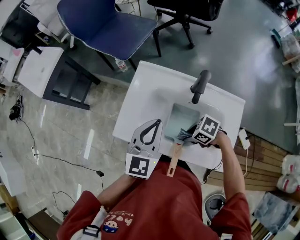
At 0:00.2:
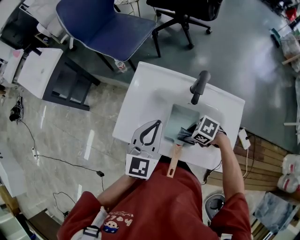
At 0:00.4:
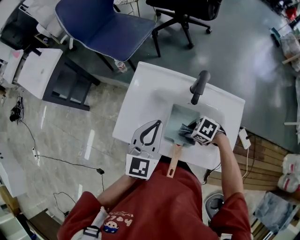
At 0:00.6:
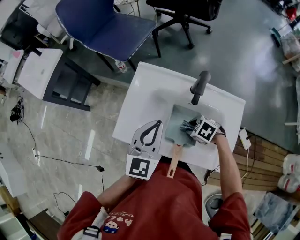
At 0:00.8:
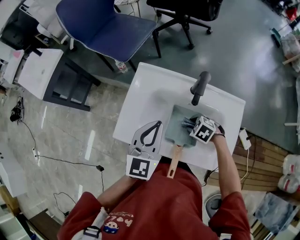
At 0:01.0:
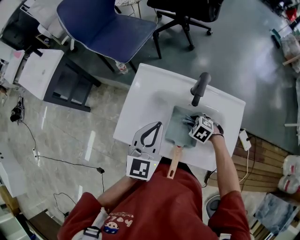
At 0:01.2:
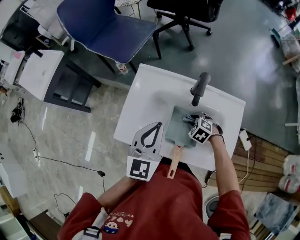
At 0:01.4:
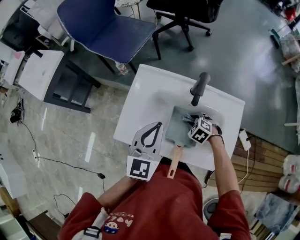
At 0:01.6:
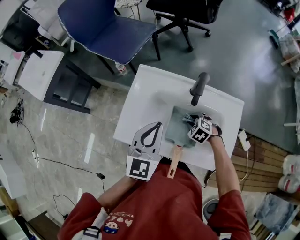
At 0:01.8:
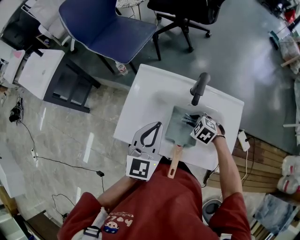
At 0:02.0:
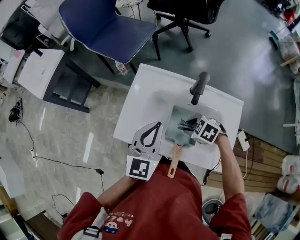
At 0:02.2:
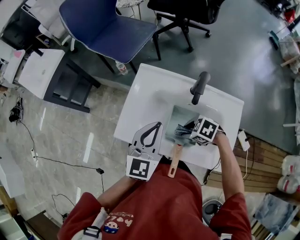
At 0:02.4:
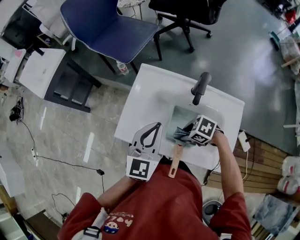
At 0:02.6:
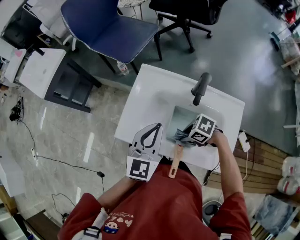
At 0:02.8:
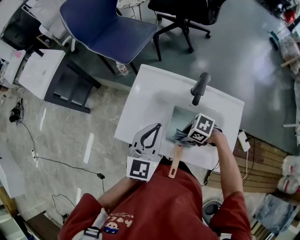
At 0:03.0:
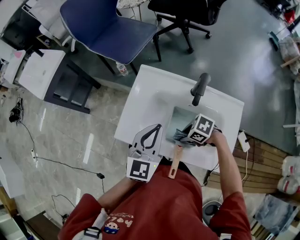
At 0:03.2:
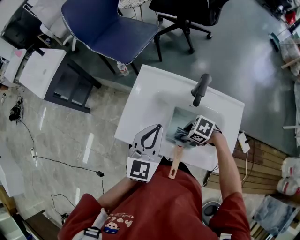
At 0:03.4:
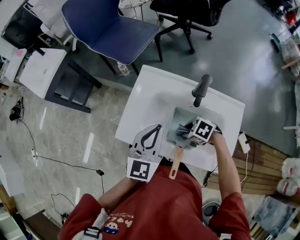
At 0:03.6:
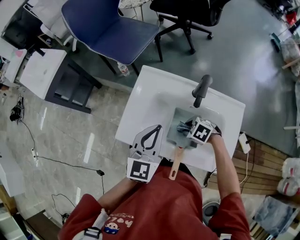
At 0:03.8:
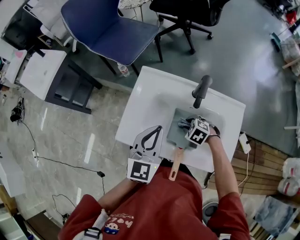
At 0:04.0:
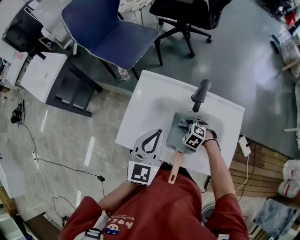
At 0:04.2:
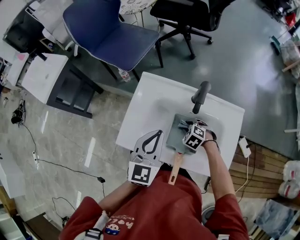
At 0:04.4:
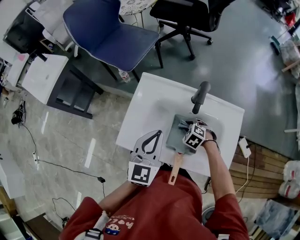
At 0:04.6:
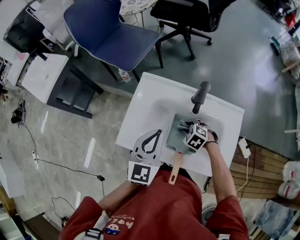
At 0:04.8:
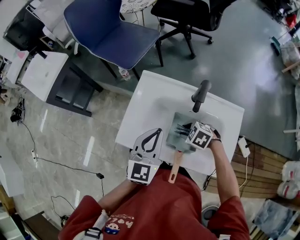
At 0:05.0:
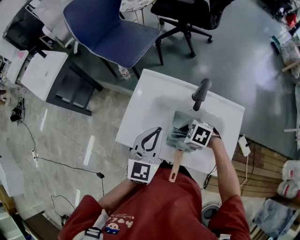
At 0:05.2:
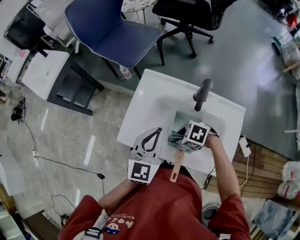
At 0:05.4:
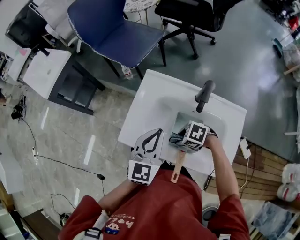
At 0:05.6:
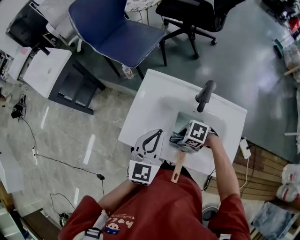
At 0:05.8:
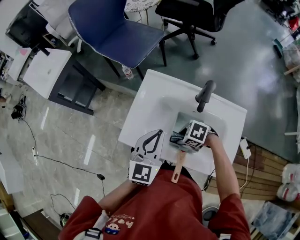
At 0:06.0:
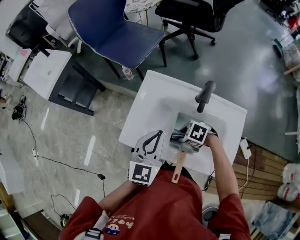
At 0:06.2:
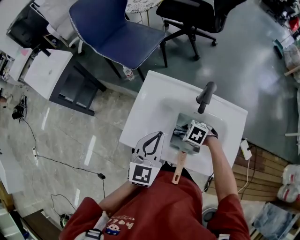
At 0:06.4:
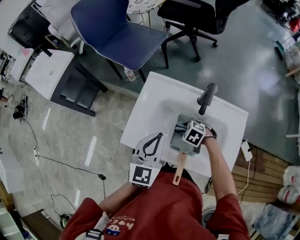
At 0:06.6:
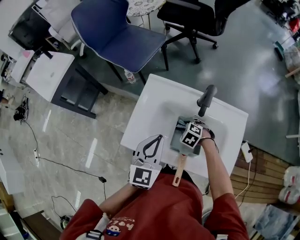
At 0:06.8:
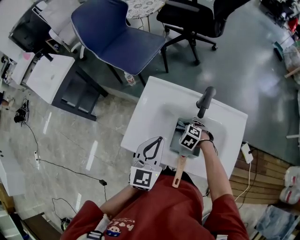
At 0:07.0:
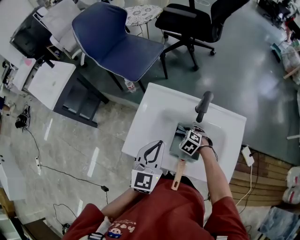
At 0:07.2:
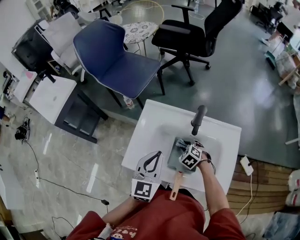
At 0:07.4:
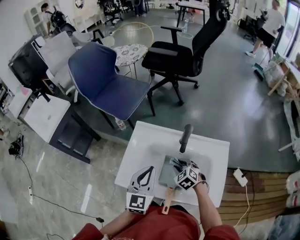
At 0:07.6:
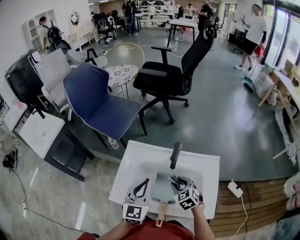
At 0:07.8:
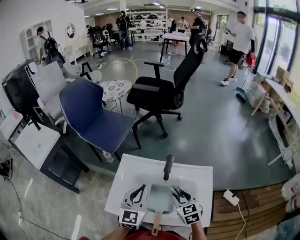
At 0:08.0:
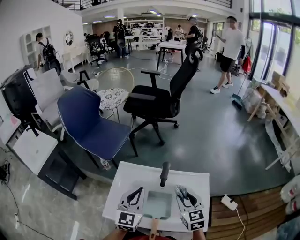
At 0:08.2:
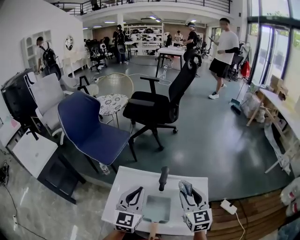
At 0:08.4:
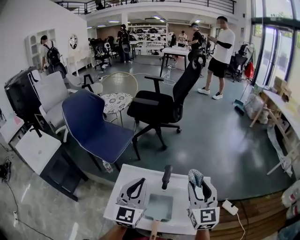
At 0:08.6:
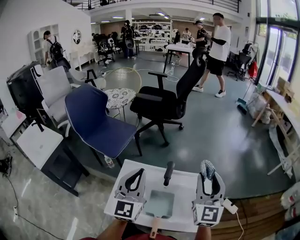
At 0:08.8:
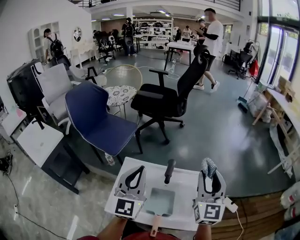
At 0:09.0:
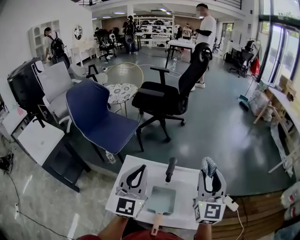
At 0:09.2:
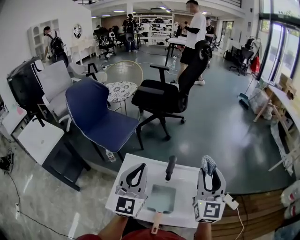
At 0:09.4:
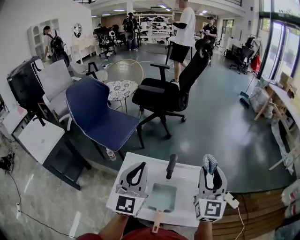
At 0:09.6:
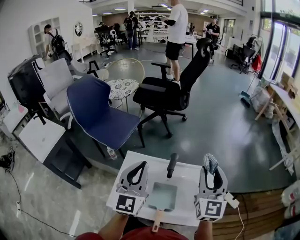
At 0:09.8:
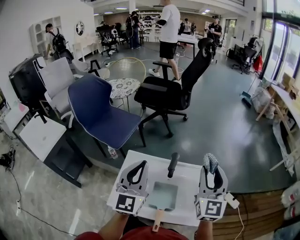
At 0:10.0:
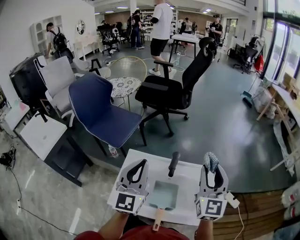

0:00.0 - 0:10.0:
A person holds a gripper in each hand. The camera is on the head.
0:00.0 - 0:01.4: The right gripper ends up approximately 10 cm from where it was, and swivels about 40 degrees.
0:01.4 - 0:02.8: The right gripper ends up about 10 cm from where it was, and changes its angle by roughly 40 degrees.
0:02.8 - 0:04.2: The right gripper changes place by approximately 10 cm, and rotates approximately 40 degrees.
0:04.2 - 0:05.8: The right gripper changes place by roughly 10 cm, and changes its angle by approximately 30 degrees.
0:05.8 - 0:07.2: The right gripper shifts by roughly 10 cm, and rotates about 40 degrees.
0:07.2 - 0:08.6: The left gripper is displaced upward by about 20 cm, and rotates roughly 20 degrees. Meanwhile the right gripper is displaced upward by approximately 40 cm, and tilts its fingers roughly 70 degrees upward.
0:08.6 - 0:10.0: The grippers make only small movements.

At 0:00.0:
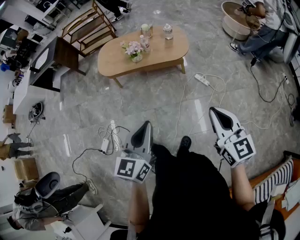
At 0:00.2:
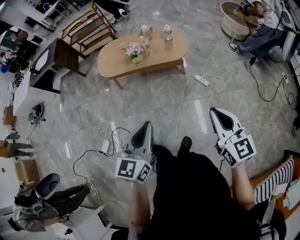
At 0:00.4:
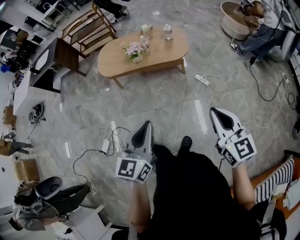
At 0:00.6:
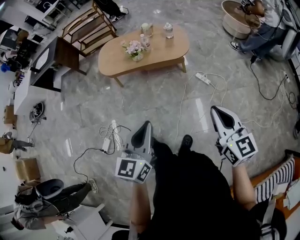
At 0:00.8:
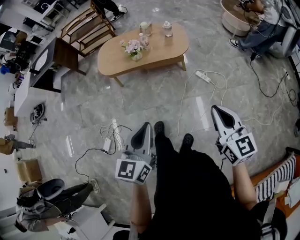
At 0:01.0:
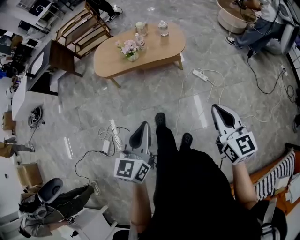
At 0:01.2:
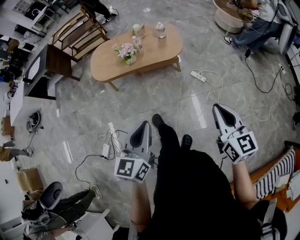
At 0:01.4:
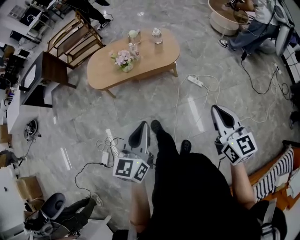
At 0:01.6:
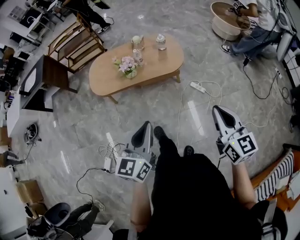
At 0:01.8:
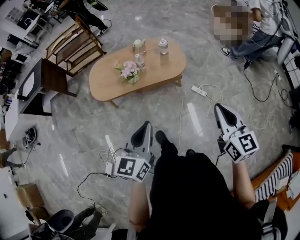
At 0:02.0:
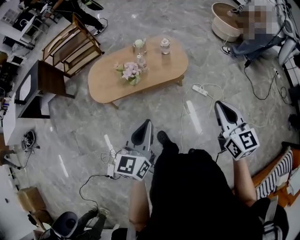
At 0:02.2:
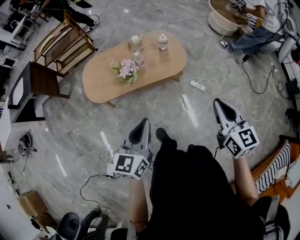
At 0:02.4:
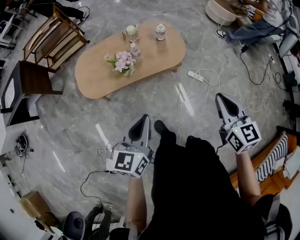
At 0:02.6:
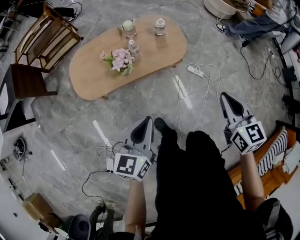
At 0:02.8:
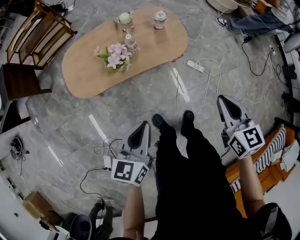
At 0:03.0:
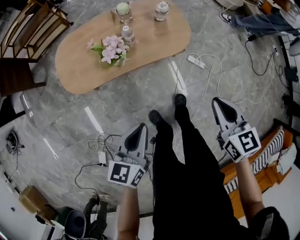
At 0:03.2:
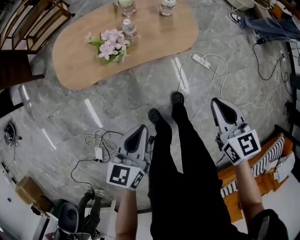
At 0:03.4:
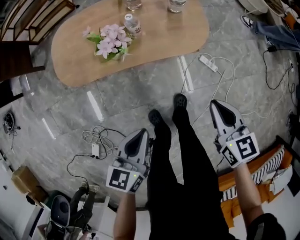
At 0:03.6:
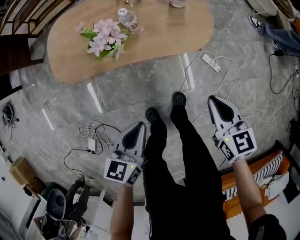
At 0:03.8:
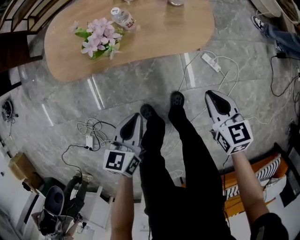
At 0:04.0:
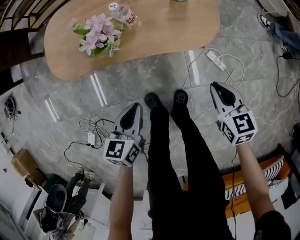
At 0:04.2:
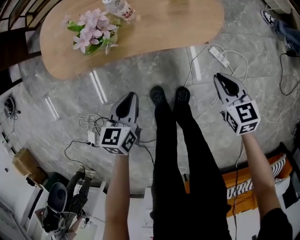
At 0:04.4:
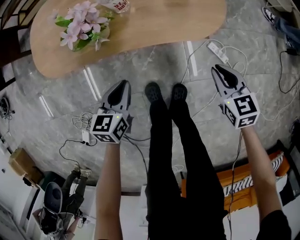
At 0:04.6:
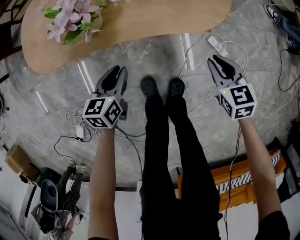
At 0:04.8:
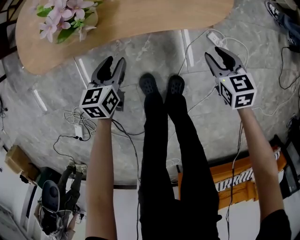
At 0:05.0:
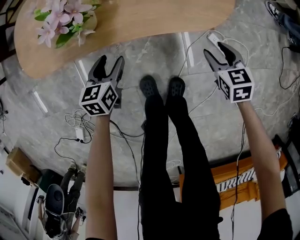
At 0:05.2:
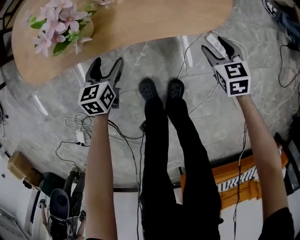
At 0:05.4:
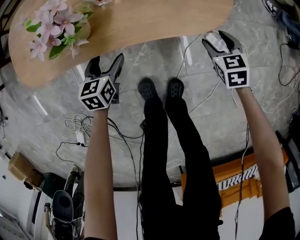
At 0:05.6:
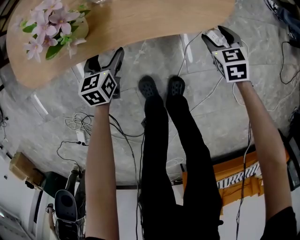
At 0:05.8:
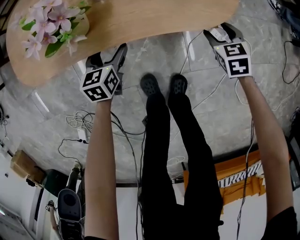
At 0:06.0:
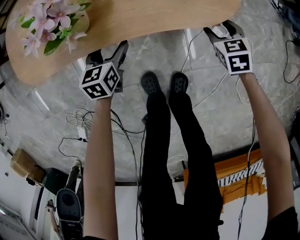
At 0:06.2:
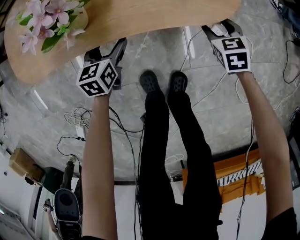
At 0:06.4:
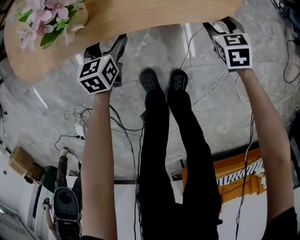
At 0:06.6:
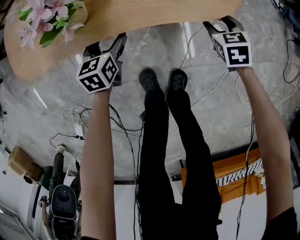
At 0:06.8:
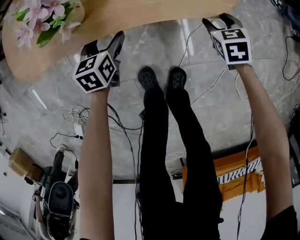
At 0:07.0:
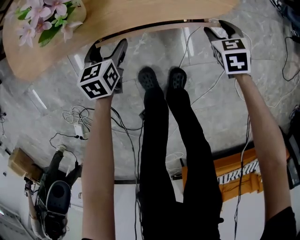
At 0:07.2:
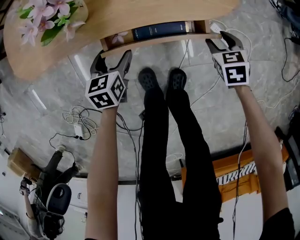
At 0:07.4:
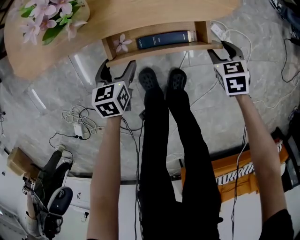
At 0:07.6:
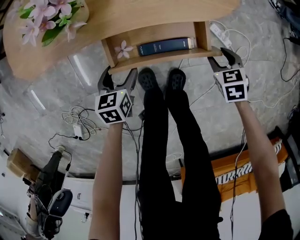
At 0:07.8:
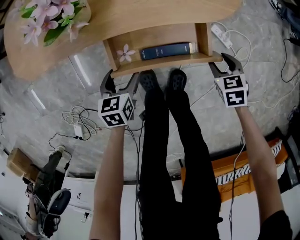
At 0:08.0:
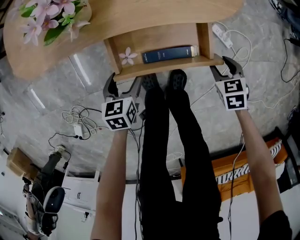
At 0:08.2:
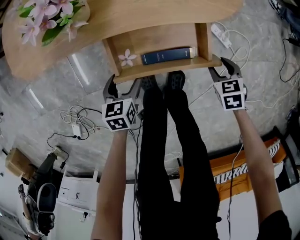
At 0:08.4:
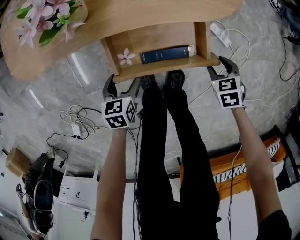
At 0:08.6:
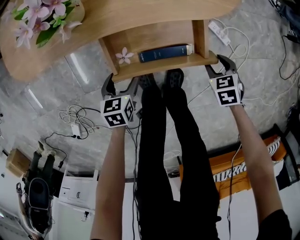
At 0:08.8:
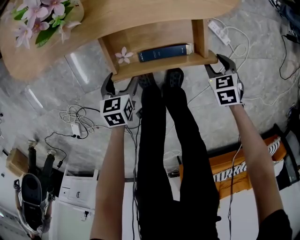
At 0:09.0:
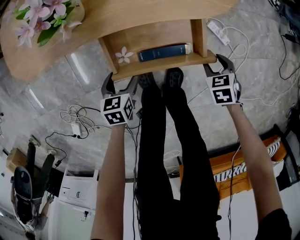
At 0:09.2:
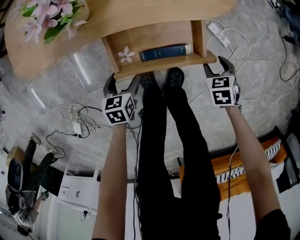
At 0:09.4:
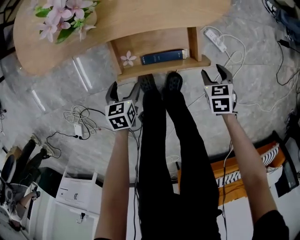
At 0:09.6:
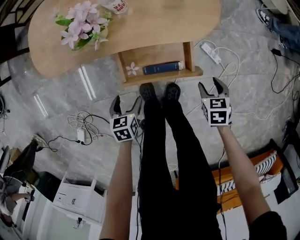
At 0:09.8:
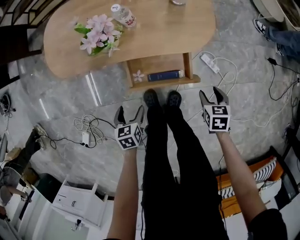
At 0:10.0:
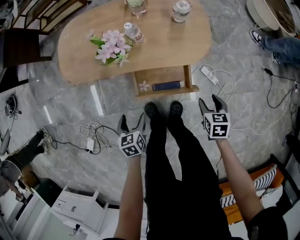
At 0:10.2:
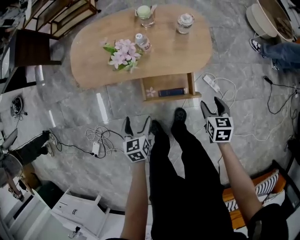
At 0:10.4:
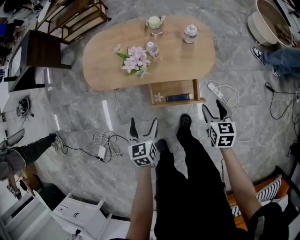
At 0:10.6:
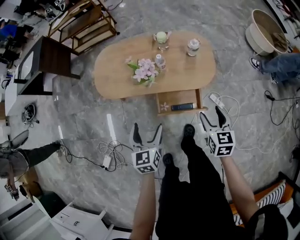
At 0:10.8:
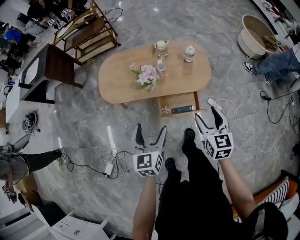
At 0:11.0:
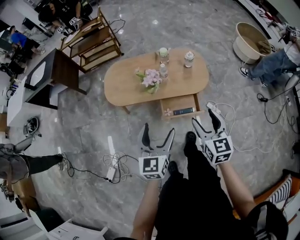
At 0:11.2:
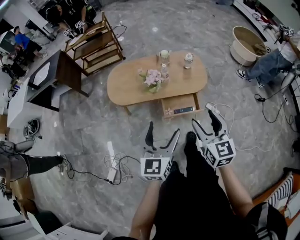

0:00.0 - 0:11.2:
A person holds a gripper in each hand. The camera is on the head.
0:00.0 - 0:01.6: Both grippers travel together forward, some 15 cm.
0:01.6 - 0:03.2: The left gripper goes some 35 cm downward, forward and to the left, and changes its angle by some 20 degrees. The right gripper goes about 35 cm forward, downward and to the left, and rotates some 20 degrees.
0:03.2 - 0:04.8: The right gripper travels downward by approximately 40 cm, changes its angle by approximately 20 degrees, and opens; the left gripper moves downward and forward, about 40 cm, and opens up.
0:04.8 - 0:06.4: The grippers both shift forward and downward by about 10 cm. The right gripper opens its fingers; the left gripper opens its fingers.
0:06.4 - 0:08.0: The two grippers go about 15 cm backward.
0:08.0 - 0:09.6: The two grippers go some 10 cm upward.
0:09.6 - 0:11.2: Both grippers move upward, approximately 60 cm. The right gripper angles its fingers upward, by roughly 50 degrees. The left gripper tips its fingers upward by about 50 degrees.

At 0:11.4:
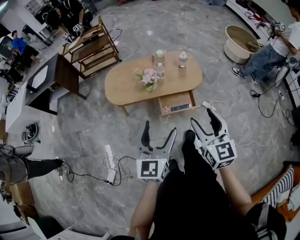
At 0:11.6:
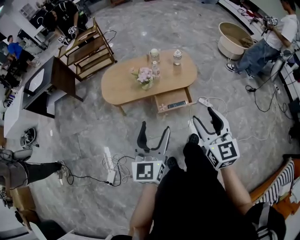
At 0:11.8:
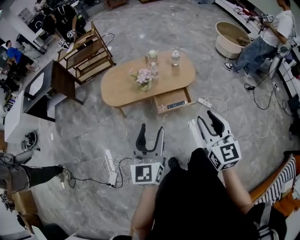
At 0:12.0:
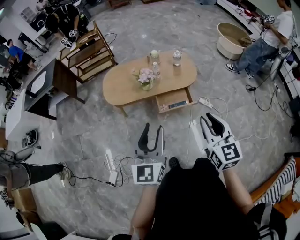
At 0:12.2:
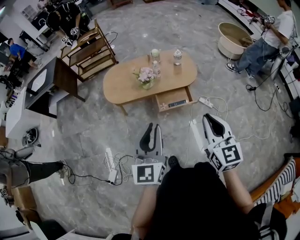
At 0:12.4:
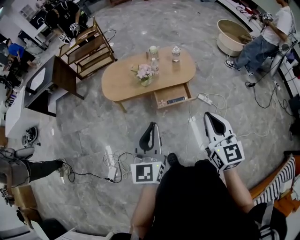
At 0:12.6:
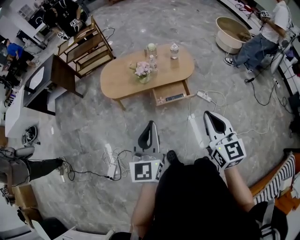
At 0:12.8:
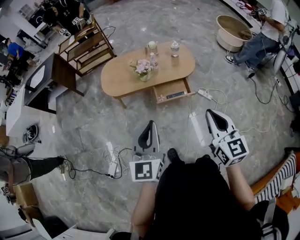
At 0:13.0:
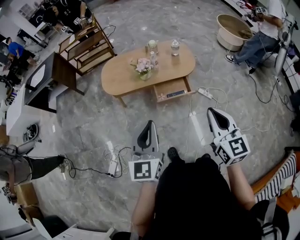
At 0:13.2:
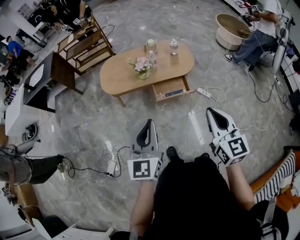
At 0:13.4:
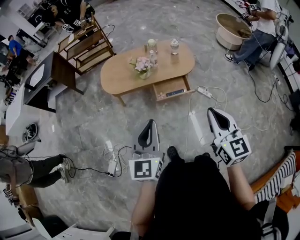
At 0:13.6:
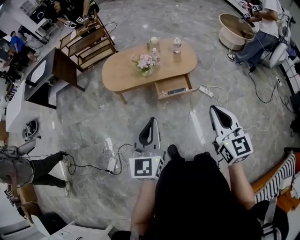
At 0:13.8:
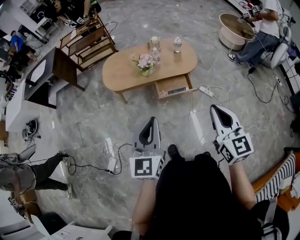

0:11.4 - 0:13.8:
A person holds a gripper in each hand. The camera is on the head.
0:11.4 - 0:12.6: Both grippers travel together backward, some 10 cm. The left gripper closes; the right gripper closes its fingers.
0:12.6 - 0:13.8: There are only small adjustments of the grippers.
